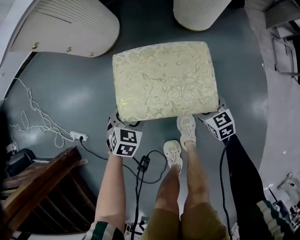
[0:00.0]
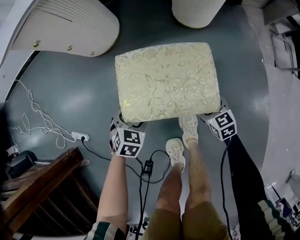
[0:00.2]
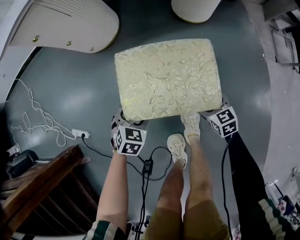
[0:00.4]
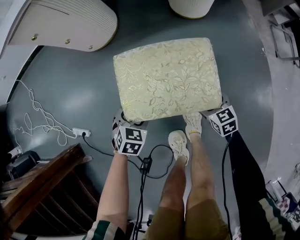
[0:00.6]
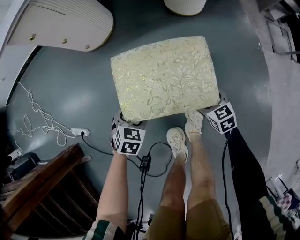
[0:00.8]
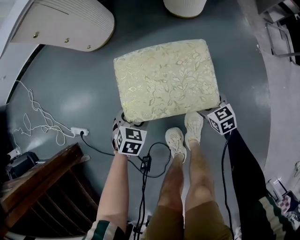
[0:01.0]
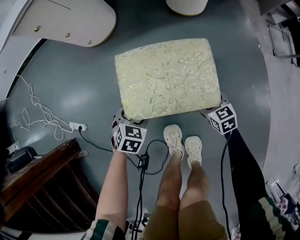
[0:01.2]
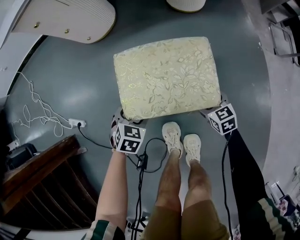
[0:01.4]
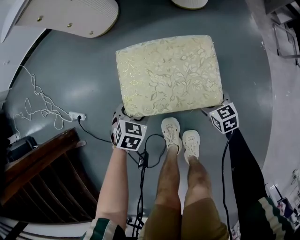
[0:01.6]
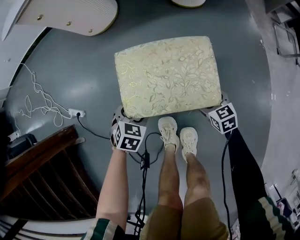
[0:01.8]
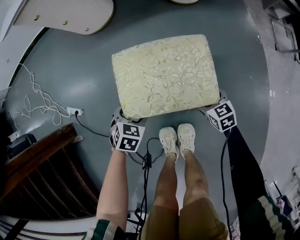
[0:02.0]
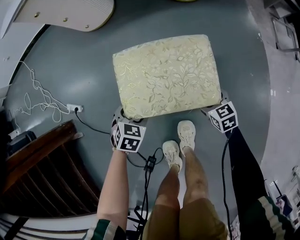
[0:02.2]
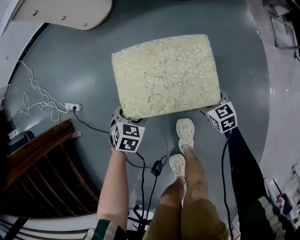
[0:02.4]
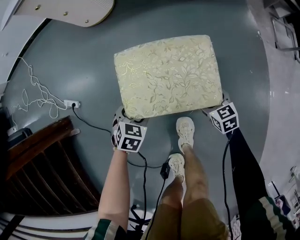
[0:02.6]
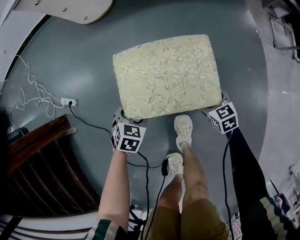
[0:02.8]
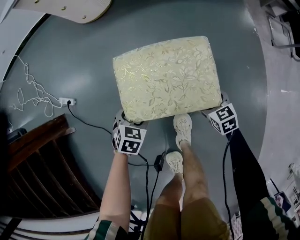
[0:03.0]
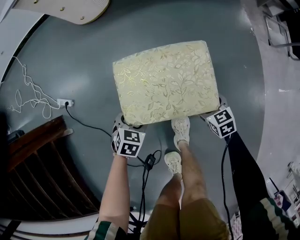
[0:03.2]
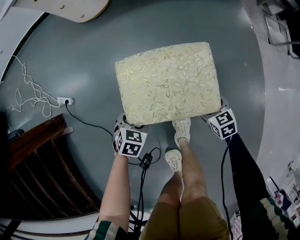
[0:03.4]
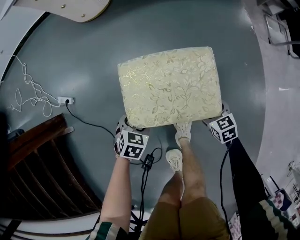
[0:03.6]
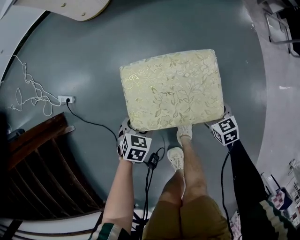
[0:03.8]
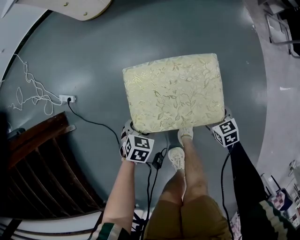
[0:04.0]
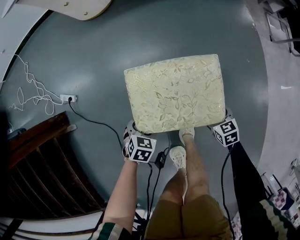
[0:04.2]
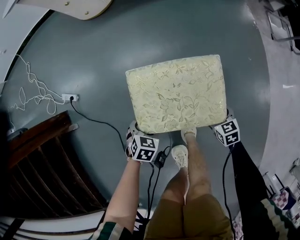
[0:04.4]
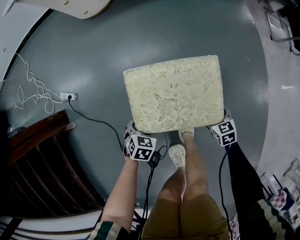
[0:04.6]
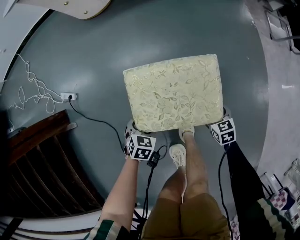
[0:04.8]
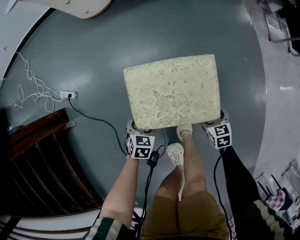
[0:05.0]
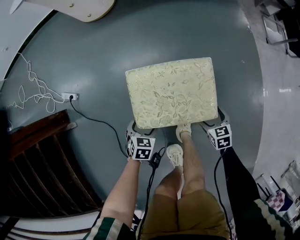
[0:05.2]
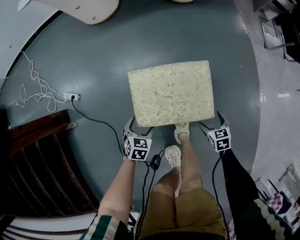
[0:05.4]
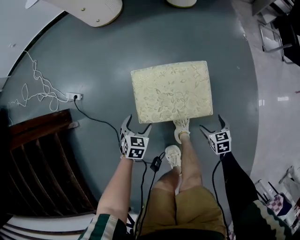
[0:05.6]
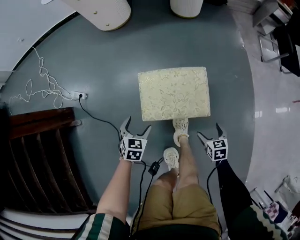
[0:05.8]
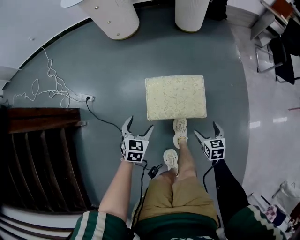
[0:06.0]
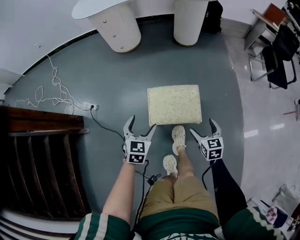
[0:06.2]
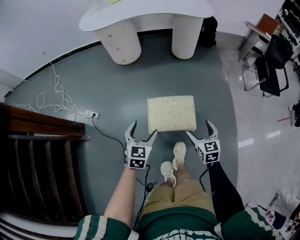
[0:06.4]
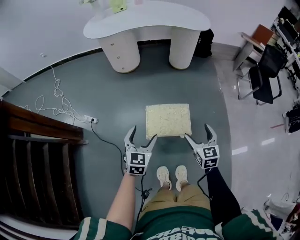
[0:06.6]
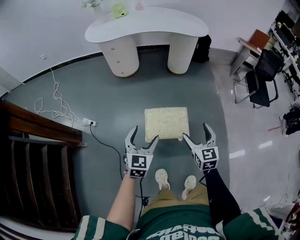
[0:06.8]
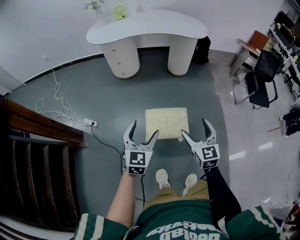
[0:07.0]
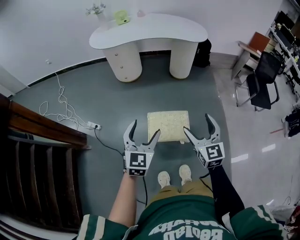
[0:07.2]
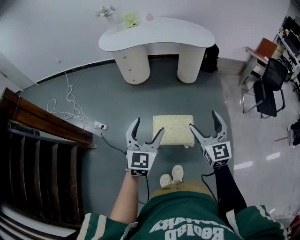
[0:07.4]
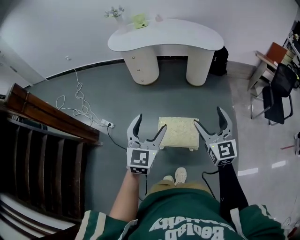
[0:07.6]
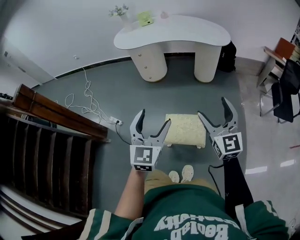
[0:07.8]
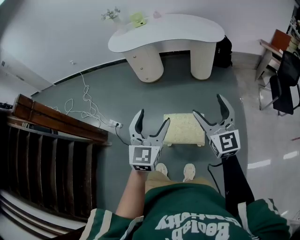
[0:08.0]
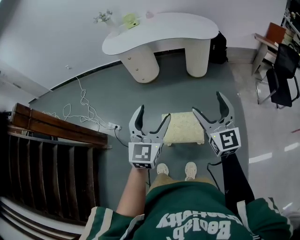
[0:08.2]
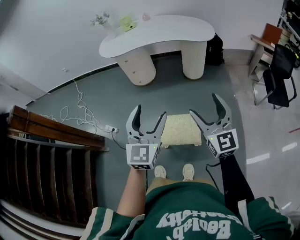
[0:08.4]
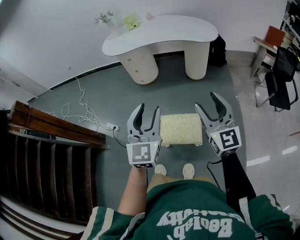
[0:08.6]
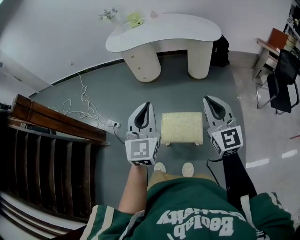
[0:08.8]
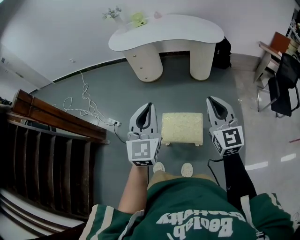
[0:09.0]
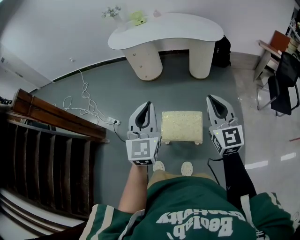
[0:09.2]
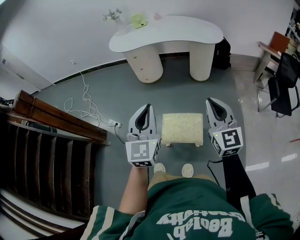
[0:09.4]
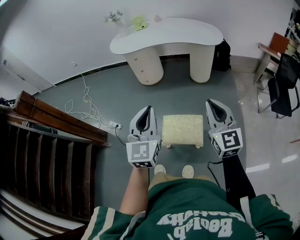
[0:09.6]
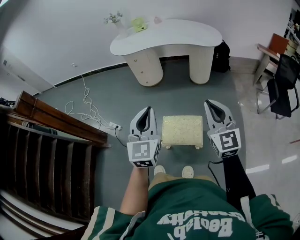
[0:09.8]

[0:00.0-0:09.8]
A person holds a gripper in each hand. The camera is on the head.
0:00.0 to 0:04.2: The grippers make only small movements.
0:04.2 to 0:05.6: The two grippers go approximately 5 cm upward.
0:05.6 to 0:07.0: Both grippers move upward, approximately 50 cm. The right gripper tips its fingers upward by about 40 degrees. The left gripper angles its fingers upward, by some 40 degrees.
0:07.0 to 0:08.4: The right gripper heads upward, forward and to the right, covering some 20 cm, and rotates roughly 20 degrees, while the left gripper moves upward, to the right and forward, some 20 cm.
0:08.4 to 0:09.8: The right gripper closes up, while the left gripper moves about 5 cm, and closes.

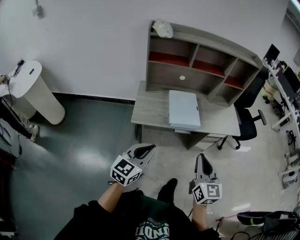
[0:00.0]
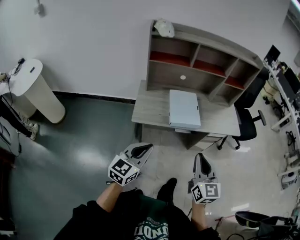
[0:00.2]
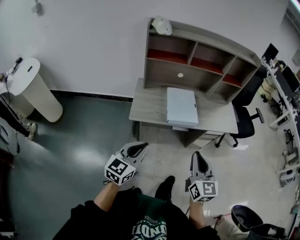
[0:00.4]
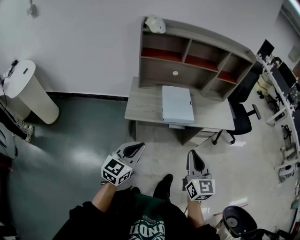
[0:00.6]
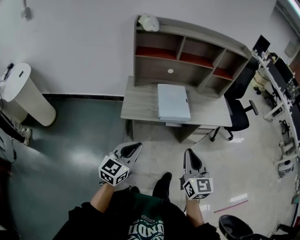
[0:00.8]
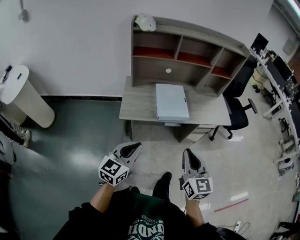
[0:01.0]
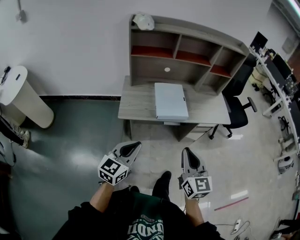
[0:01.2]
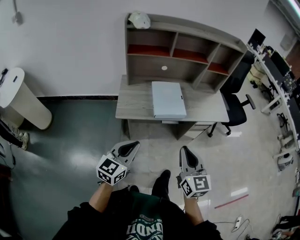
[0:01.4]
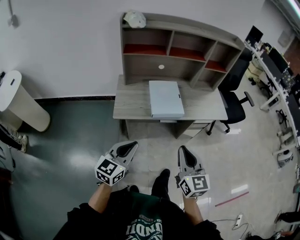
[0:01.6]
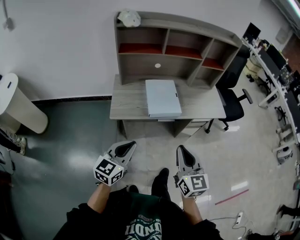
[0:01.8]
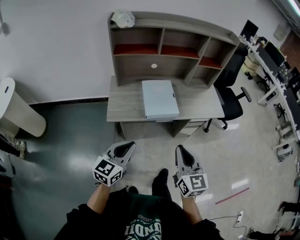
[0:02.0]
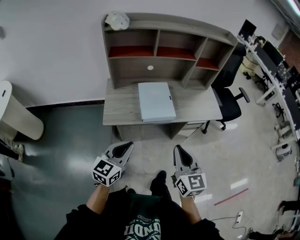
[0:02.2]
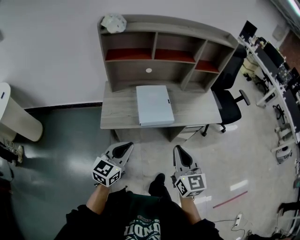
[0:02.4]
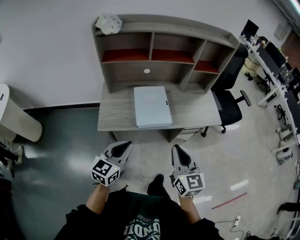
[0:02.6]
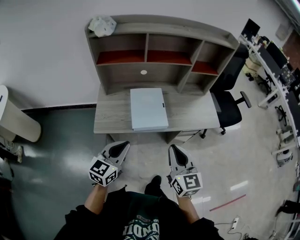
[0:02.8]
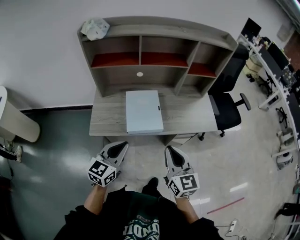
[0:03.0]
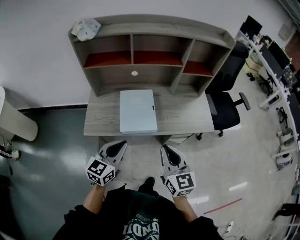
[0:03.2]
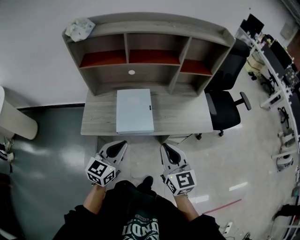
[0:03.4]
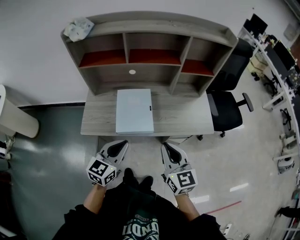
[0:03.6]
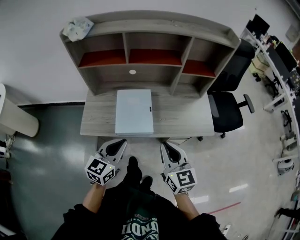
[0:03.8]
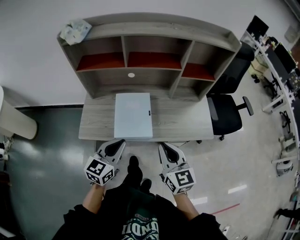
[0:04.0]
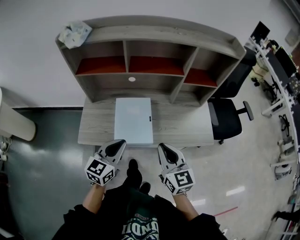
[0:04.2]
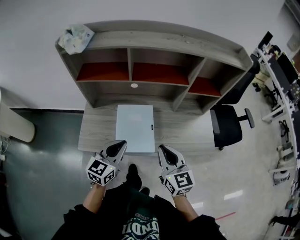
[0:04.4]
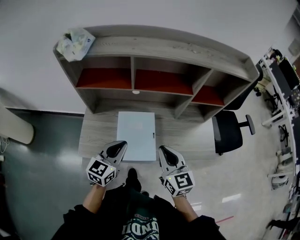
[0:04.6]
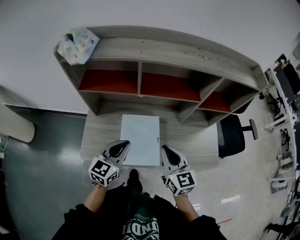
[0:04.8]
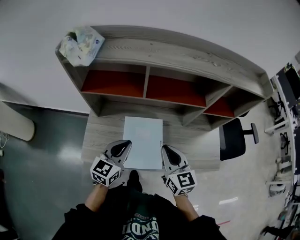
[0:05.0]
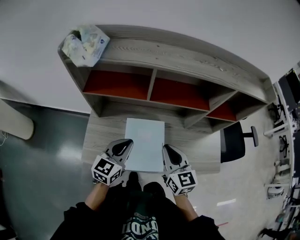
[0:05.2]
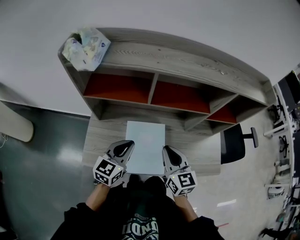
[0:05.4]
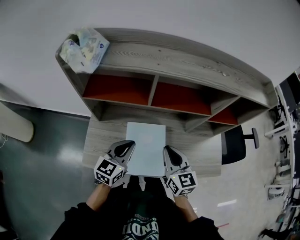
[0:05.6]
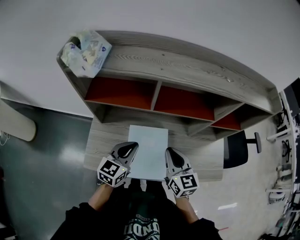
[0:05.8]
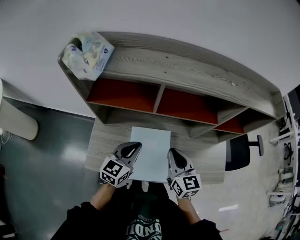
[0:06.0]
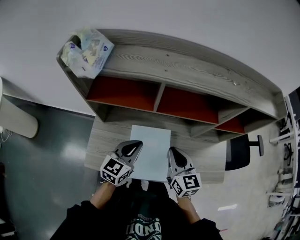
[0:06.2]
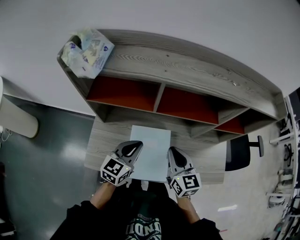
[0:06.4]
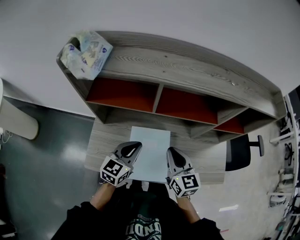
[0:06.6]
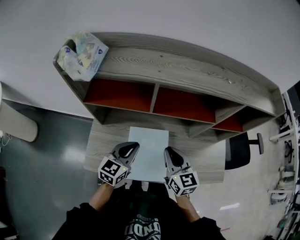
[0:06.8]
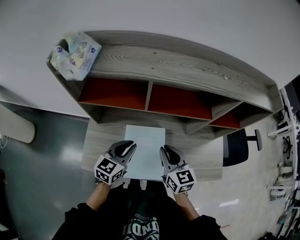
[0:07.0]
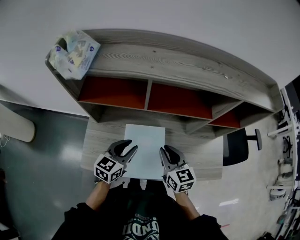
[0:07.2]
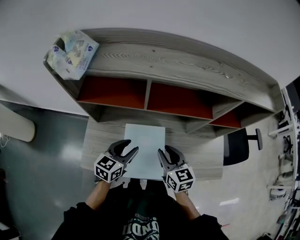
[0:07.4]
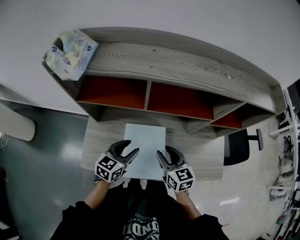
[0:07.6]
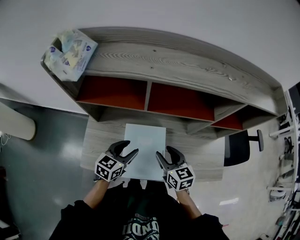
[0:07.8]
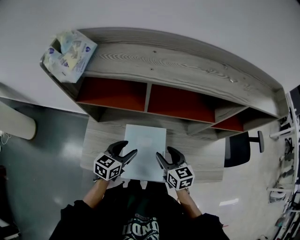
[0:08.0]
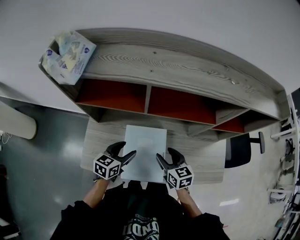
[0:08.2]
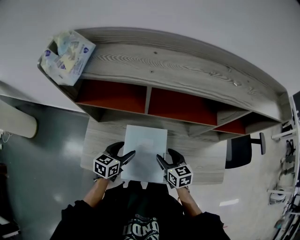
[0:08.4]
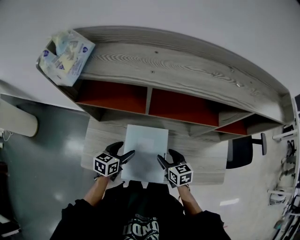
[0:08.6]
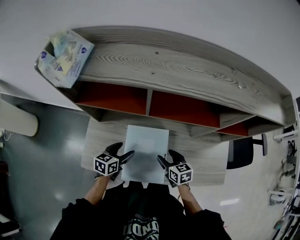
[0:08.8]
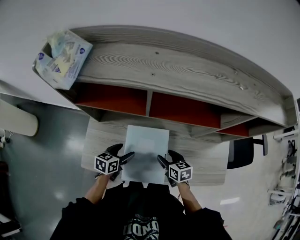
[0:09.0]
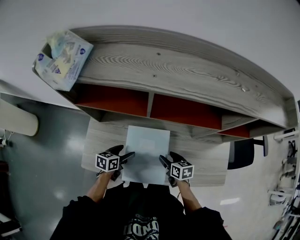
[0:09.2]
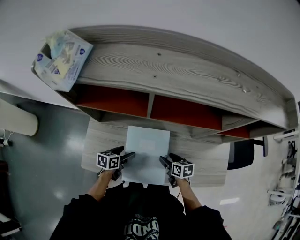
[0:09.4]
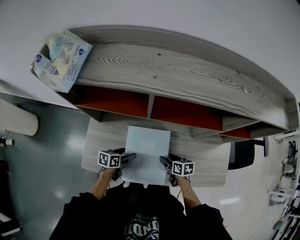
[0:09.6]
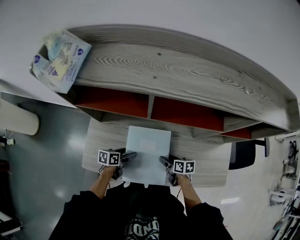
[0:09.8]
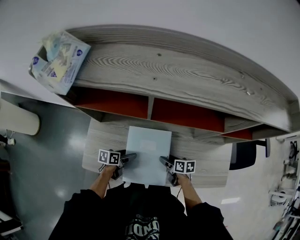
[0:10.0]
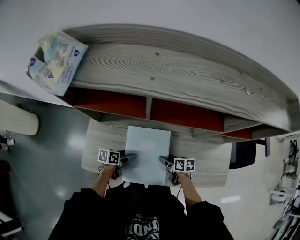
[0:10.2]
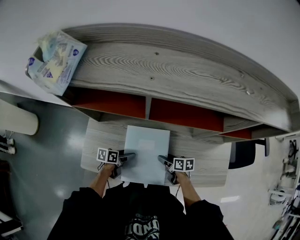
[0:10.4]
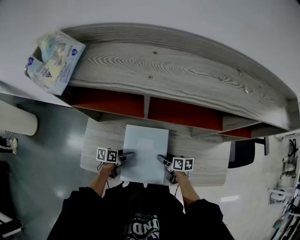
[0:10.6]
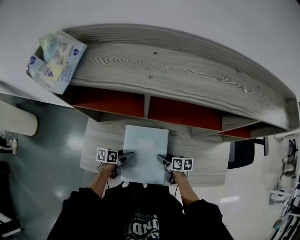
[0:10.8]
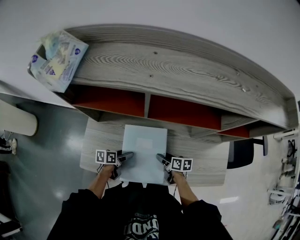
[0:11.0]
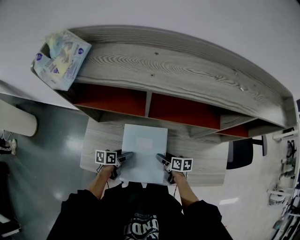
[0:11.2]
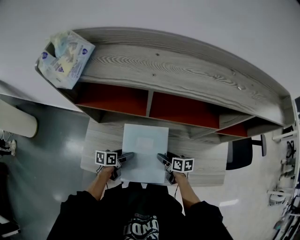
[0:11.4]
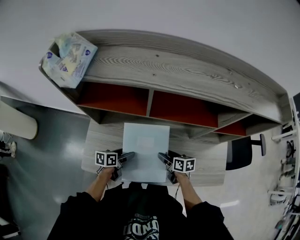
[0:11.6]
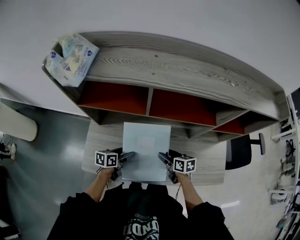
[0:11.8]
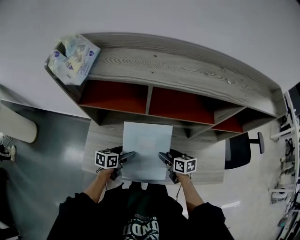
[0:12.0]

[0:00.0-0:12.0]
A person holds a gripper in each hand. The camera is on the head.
0:00.0 to 0:01.6: The grippers make only small movements.
0:01.6 to 0:03.0: Both grippers travel together forward and to the right, approximately 20 cm.
0:03.0 to 0:04.4: Both grippers move forward, some 15 cm.
0:04.4 to 0:06.0: Both grippers move forward, approximately 15 cm.
0:06.0 to 0:07.6: Both grippers move downward, some 5 cm. The left gripper opens its fingers; the right gripper opens its fingers.
0:07.6 to 0:09.0: The two grippers go some 15 cm downward. The left gripper swivels about 20 degrees, and opens. Meanwhile the right gripper turns by about 20 degrees, and opens.
0:09.0 to 0:10.4: The two grippers go about 10 cm downward. The right gripper rotates some 30 degrees, while the left gripper swivels about 30 degrees.
0:10.4 to 0:12.0: Both grippers move upward, about 10 cm.

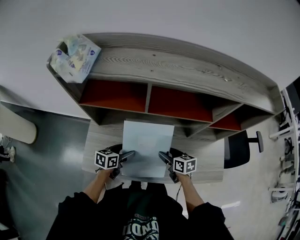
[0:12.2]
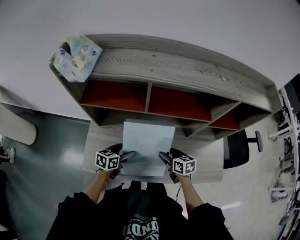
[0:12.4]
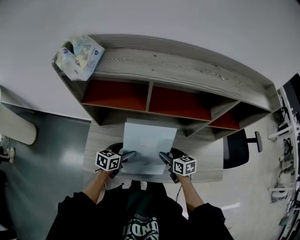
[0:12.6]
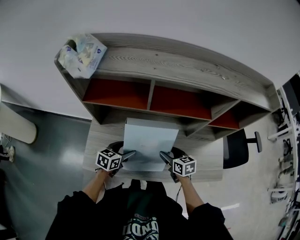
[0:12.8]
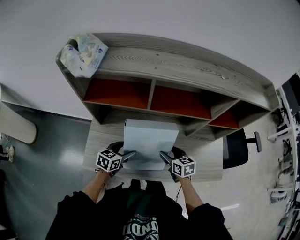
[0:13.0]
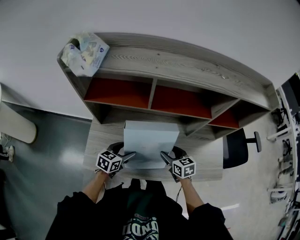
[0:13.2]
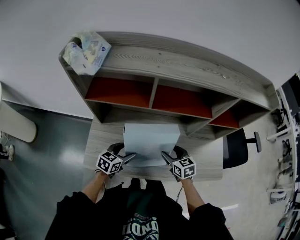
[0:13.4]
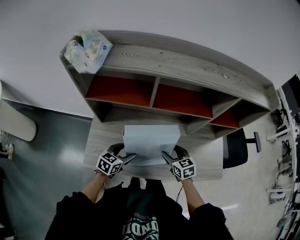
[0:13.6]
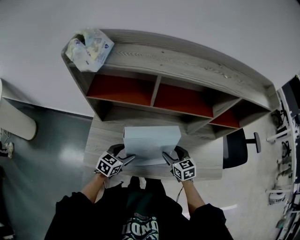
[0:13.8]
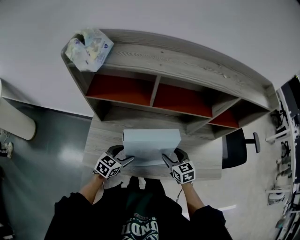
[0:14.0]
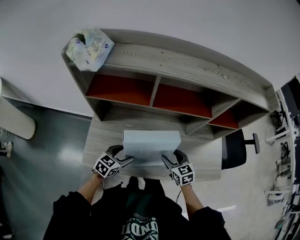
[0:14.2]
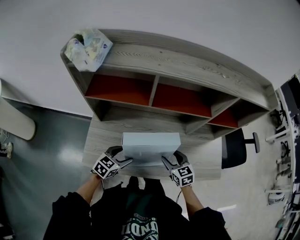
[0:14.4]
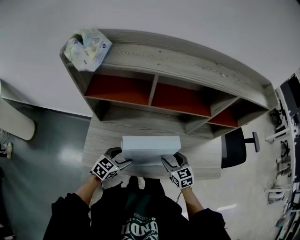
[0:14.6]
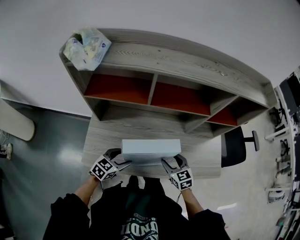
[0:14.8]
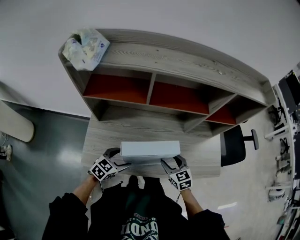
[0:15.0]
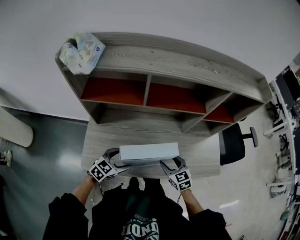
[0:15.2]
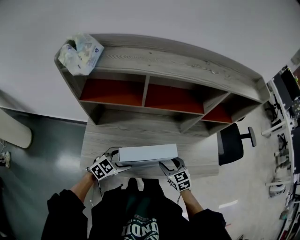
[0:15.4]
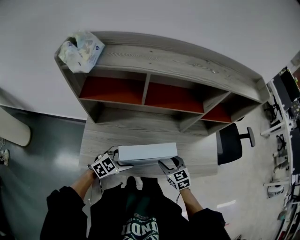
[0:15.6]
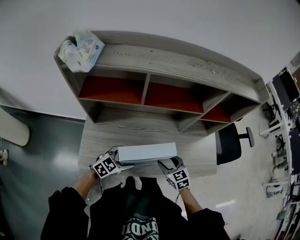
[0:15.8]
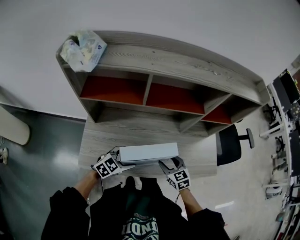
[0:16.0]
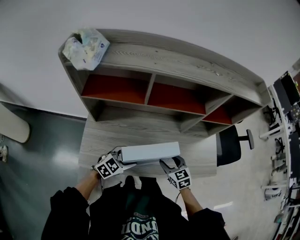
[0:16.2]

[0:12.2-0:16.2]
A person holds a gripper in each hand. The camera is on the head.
0:12.2 to 0:13.6: The right gripper turns by roughly 20 degrees, while the left gripper changes its angle by roughly 20 degrees.
0:13.6 to 0:14.8: The right gripper shifts about 5 cm backward.
0:14.8 to 0:16.2: The left gripper changes place by roughly 5 cm.